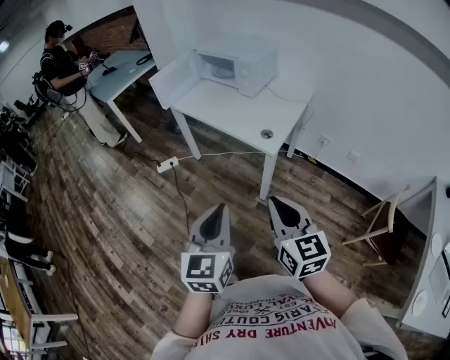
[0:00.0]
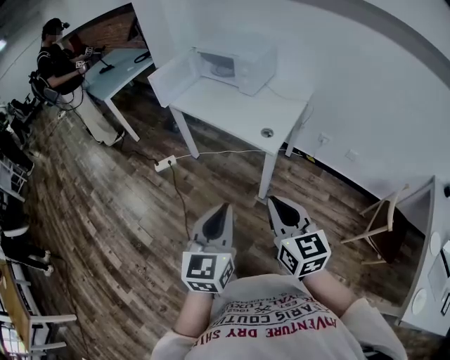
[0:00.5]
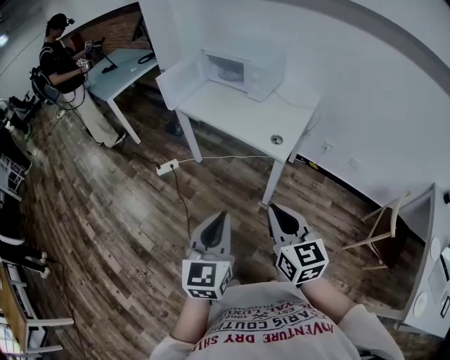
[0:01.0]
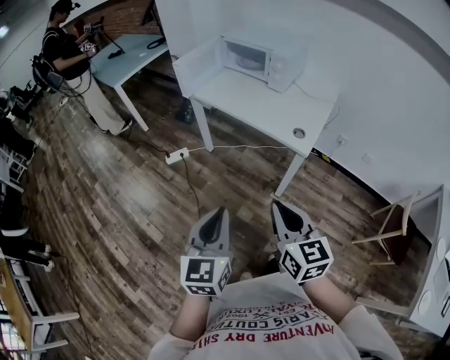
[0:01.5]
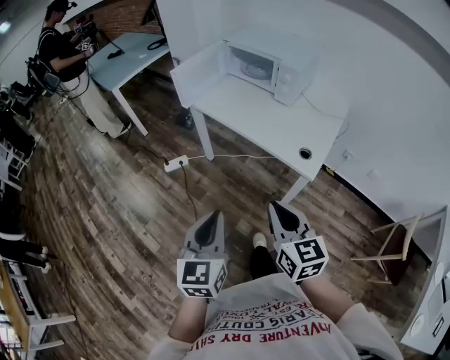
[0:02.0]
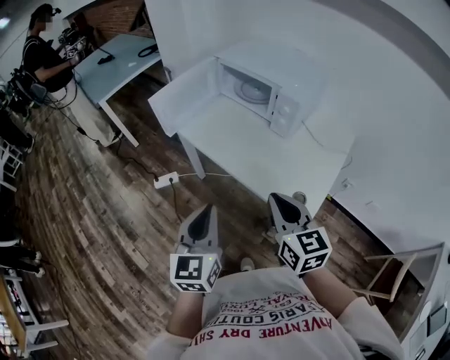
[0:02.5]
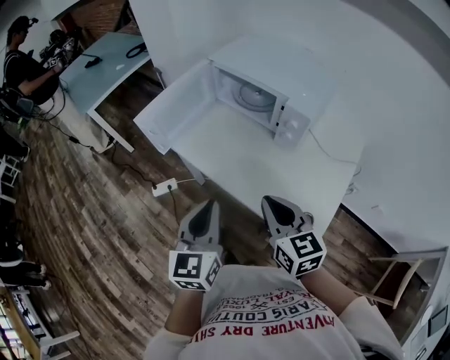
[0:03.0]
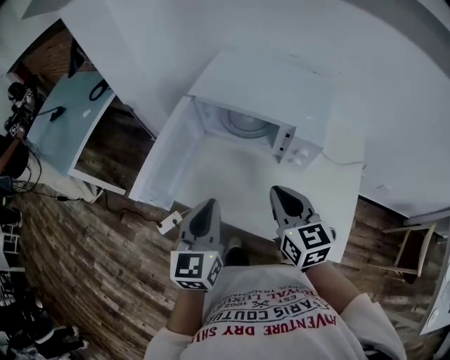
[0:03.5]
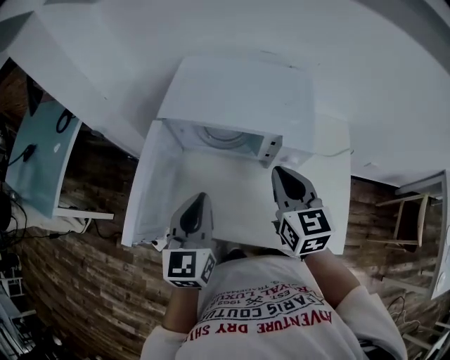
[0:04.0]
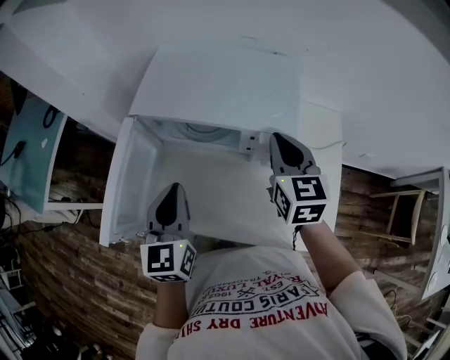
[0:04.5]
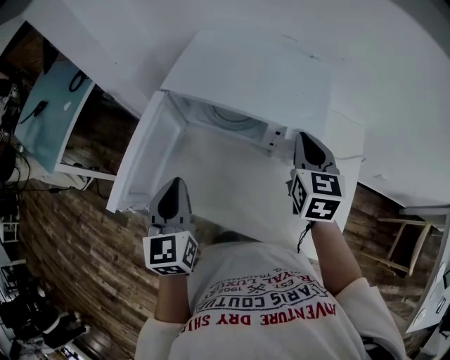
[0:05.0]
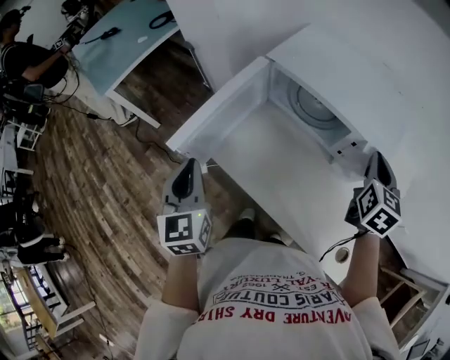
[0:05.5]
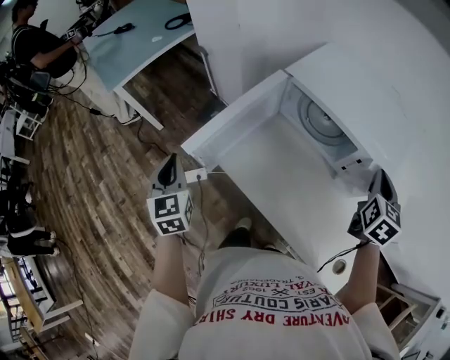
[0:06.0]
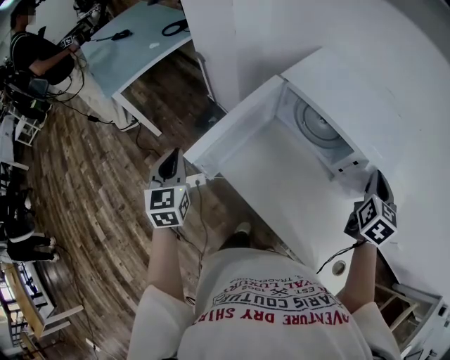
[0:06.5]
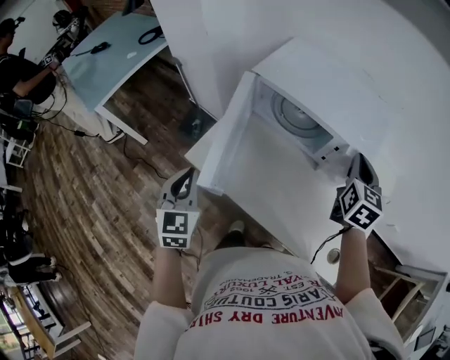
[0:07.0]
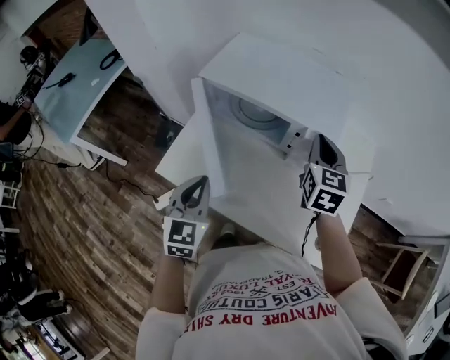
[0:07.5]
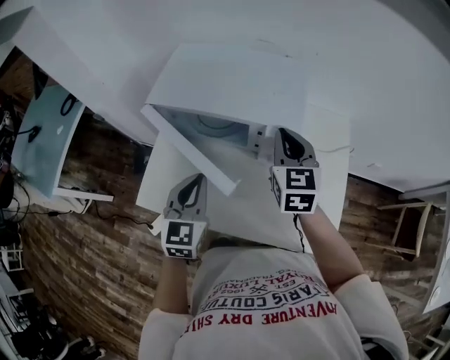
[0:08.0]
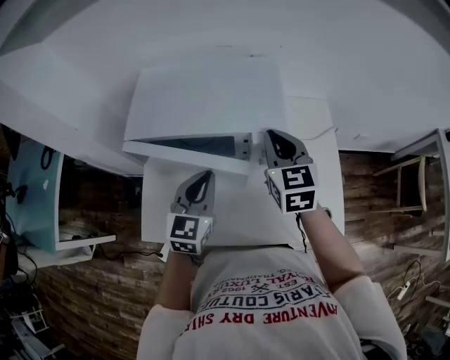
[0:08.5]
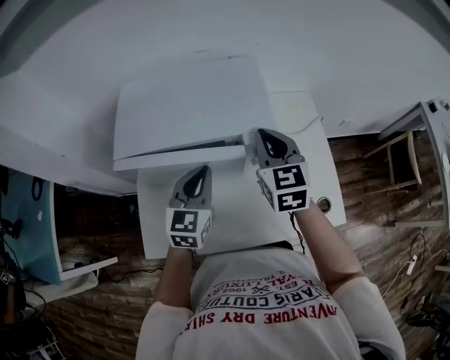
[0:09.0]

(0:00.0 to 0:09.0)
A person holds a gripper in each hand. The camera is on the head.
0:00.0 - 0:02.0: Both grippers move forward and to the left, some 20 cm.
0:02.0 - 0:04.5: The pair of grippers is taken about 60 cm. The right gripper turns by some 30 degrees.
0:04.5 - 0:07.0: The left gripper heads to the left and backward, covering roughly 20 cm, and rotates some 20 degrees.
0:07.0 - 0:09.0: The left gripper ends up some 35 cm from where it was, and changes its angle by roughly 50 degrees.

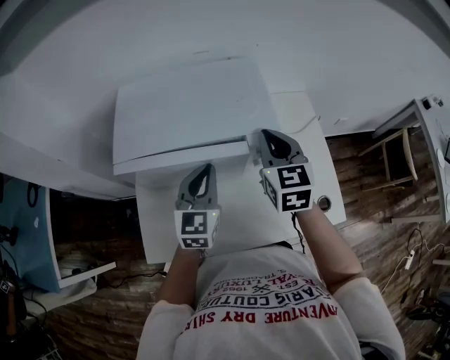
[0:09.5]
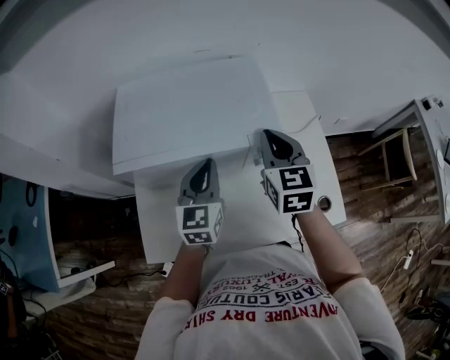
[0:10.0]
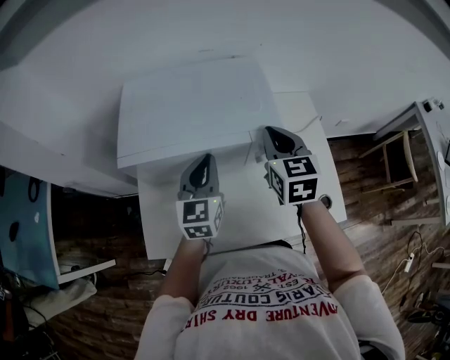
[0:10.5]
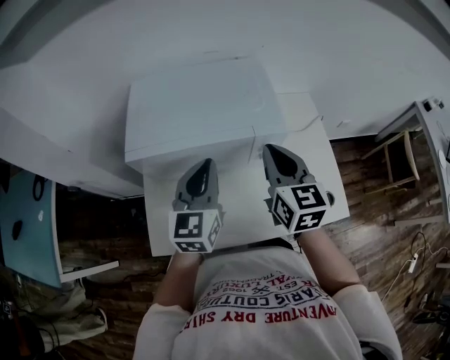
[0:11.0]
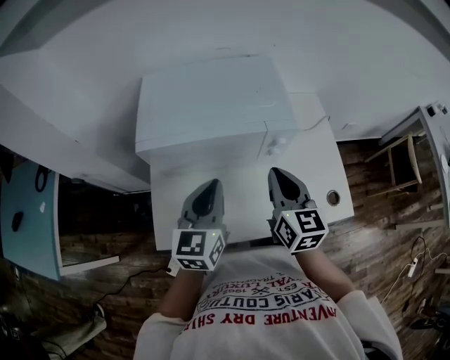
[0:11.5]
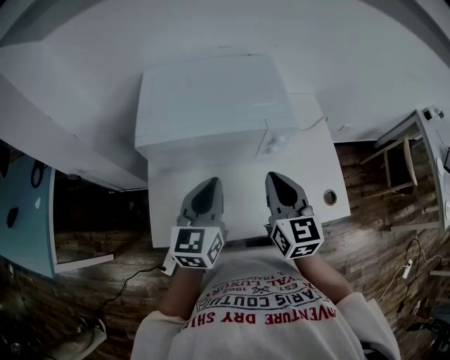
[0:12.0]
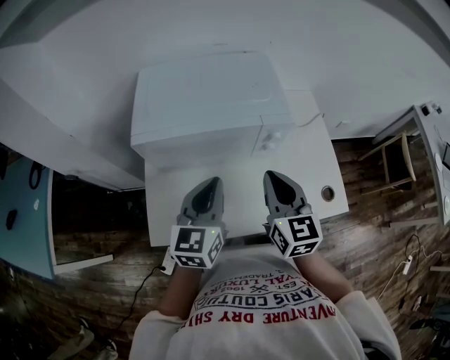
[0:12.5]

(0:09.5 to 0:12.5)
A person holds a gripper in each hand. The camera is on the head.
0:09.5 - 0:11.0: The right gripper is displaced backward by approximately 5 cm; the left gripper travels upward by approximately 5 cm.
0:11.0 - 0:12.5: Both grippers move backward, roughly 10 cm.

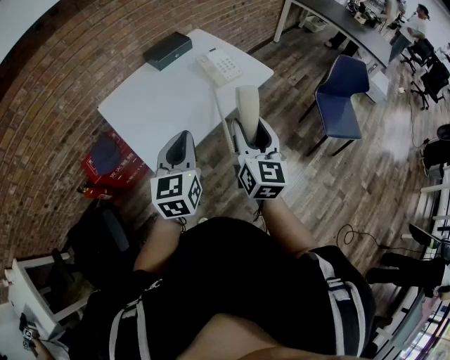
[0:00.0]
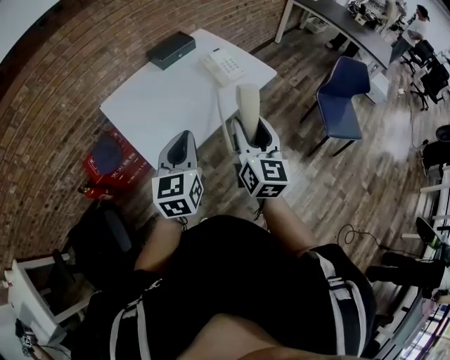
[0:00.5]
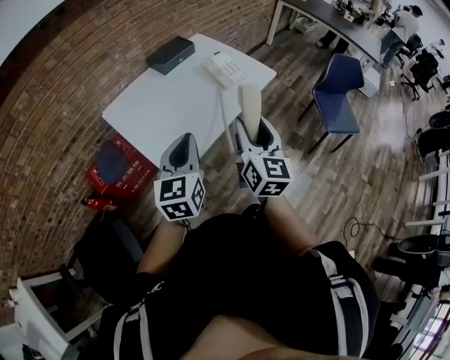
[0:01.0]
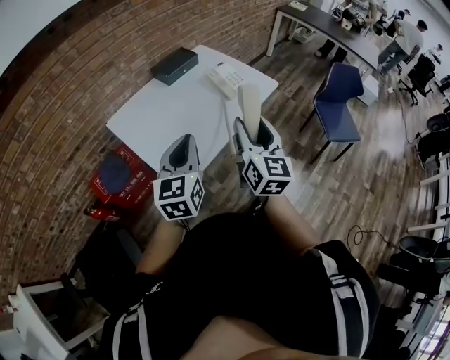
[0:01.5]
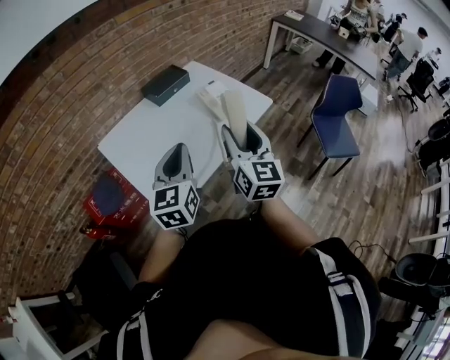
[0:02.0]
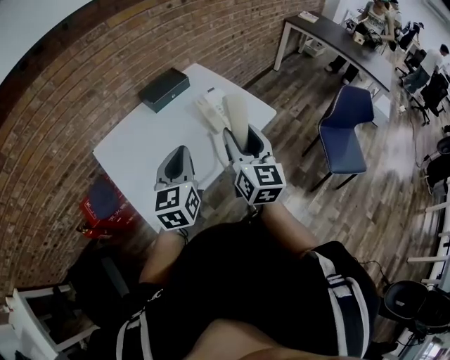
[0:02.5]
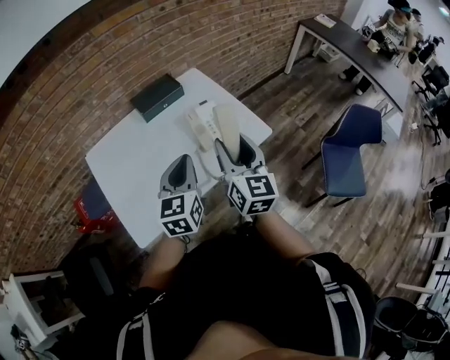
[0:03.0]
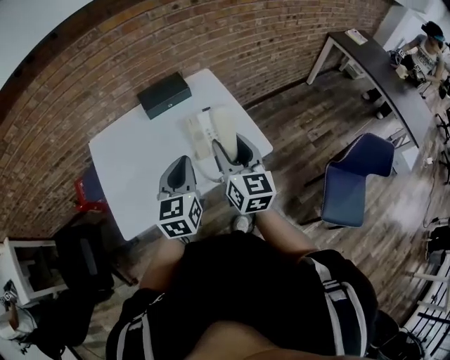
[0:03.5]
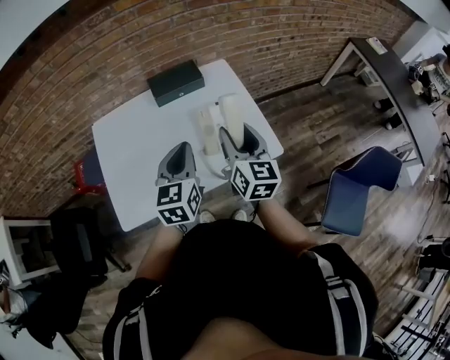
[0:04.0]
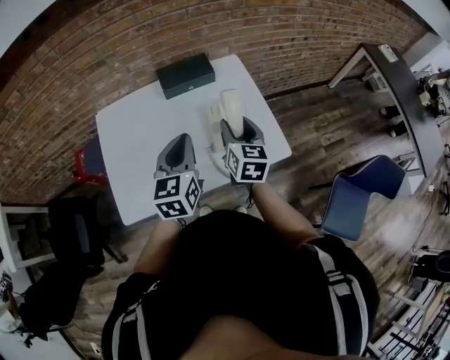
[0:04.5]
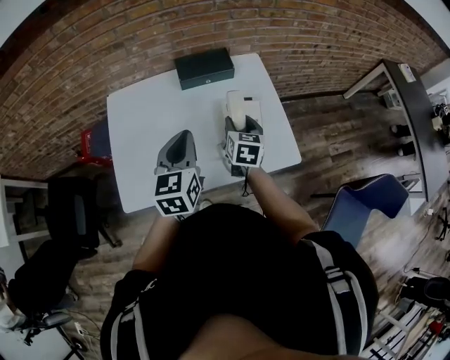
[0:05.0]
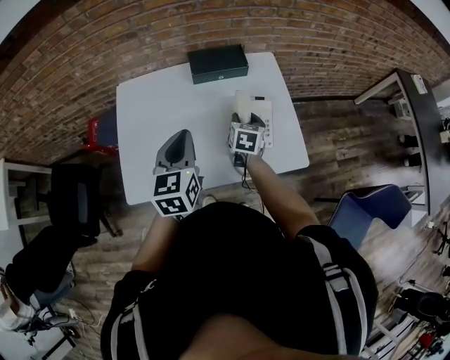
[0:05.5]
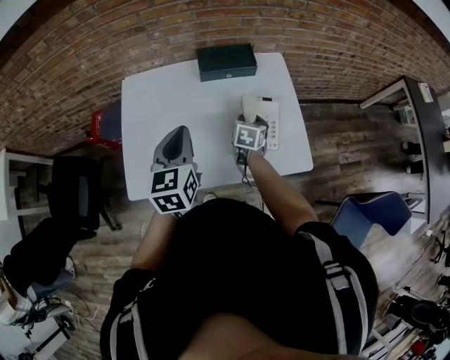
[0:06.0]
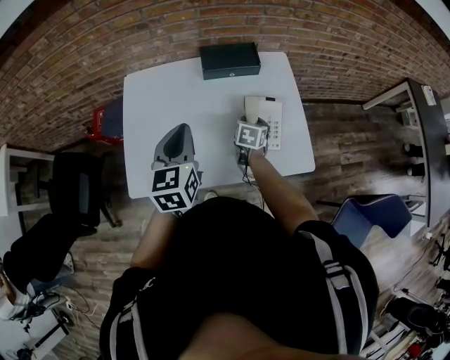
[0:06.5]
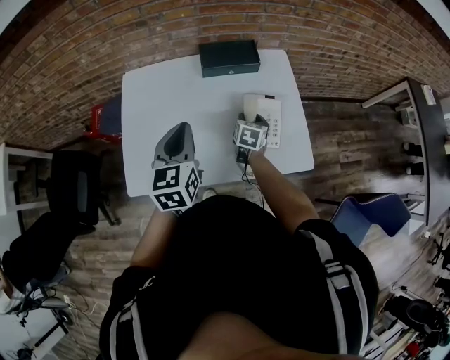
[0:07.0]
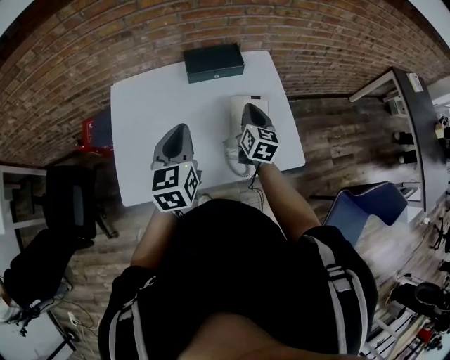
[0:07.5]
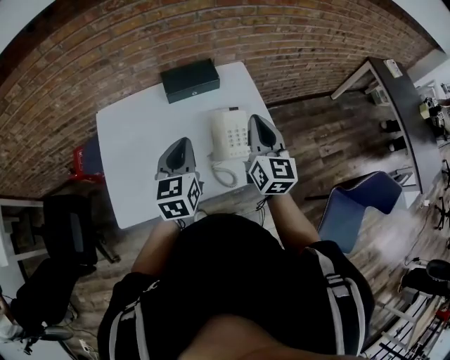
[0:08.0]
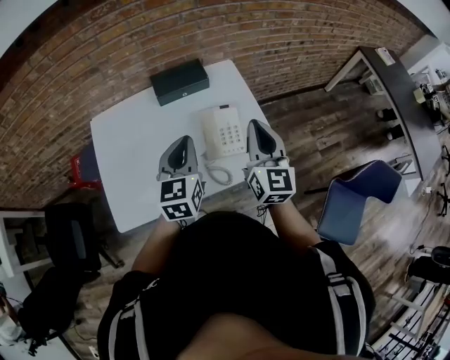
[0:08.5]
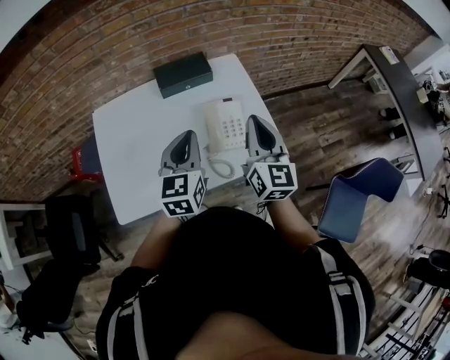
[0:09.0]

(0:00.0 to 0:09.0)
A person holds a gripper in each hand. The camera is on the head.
0:00.0 - 0:02.0: The grippers both shift forward and to the left by roughly 10 cm.
0:02.0 - 0:04.5: The right gripper moves roughly 35 cm, and rotates approximately 30 degrees; the left gripper ends up approximately 30 cm from where it was, and turns by approximately 30 degrees.
0:04.5 - 0:07.0: The right gripper goes about 20 cm downward and forward, and changes its angle by approximately 20 degrees. The left gripper heads to the left, covering some 10 cm.
0:07.0 - 0:09.0: The right gripper heads upward and backward, covering approximately 30 cm, points its fingers some 40 degrees further upward, and closes up; the left gripper shifts roughly 10 cm to the right.

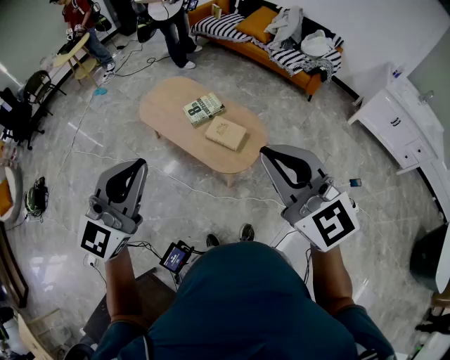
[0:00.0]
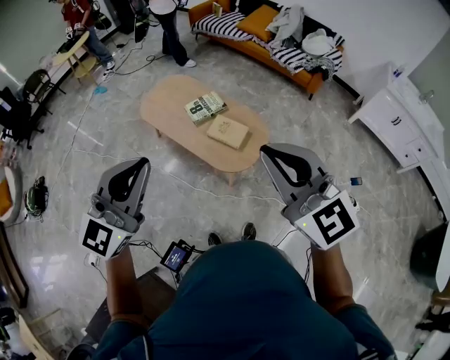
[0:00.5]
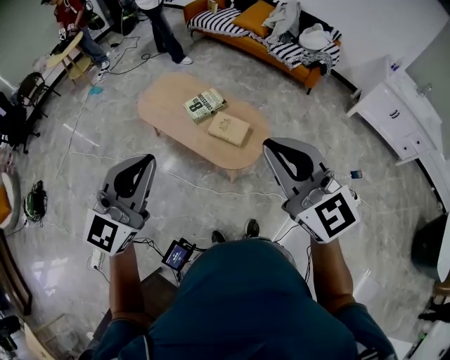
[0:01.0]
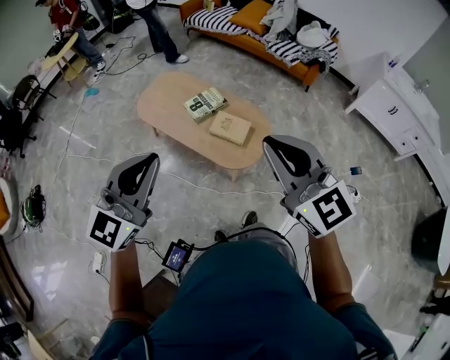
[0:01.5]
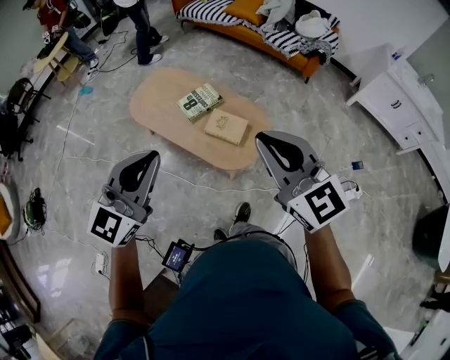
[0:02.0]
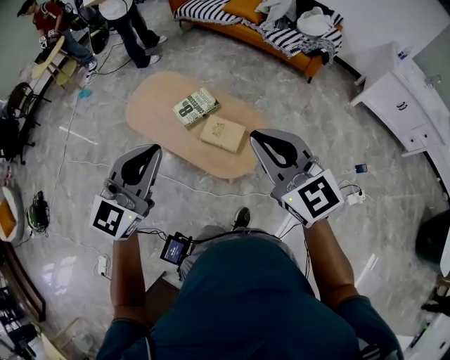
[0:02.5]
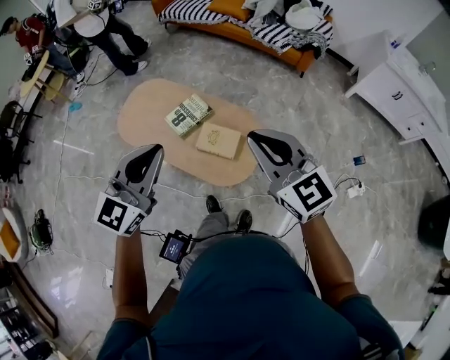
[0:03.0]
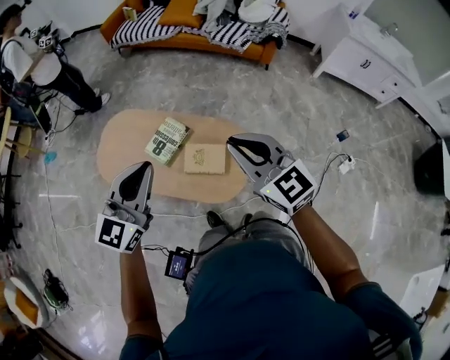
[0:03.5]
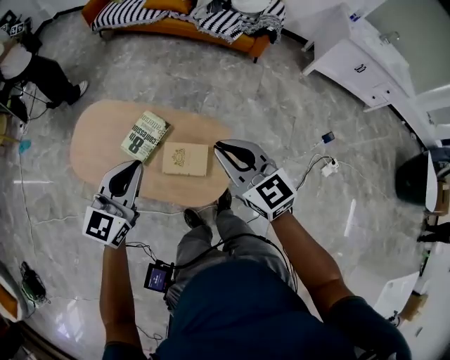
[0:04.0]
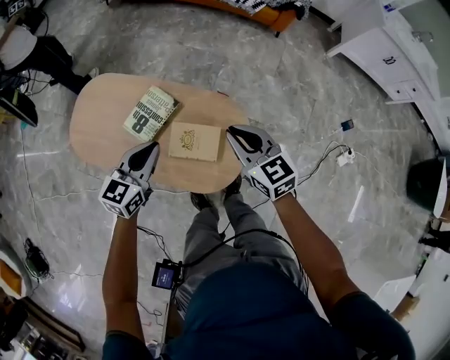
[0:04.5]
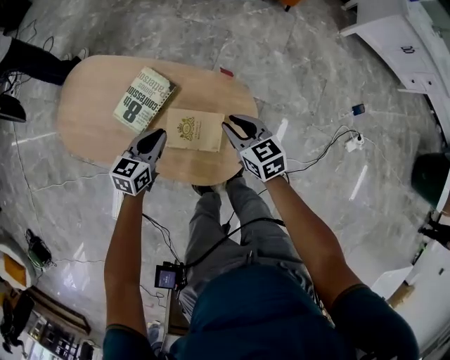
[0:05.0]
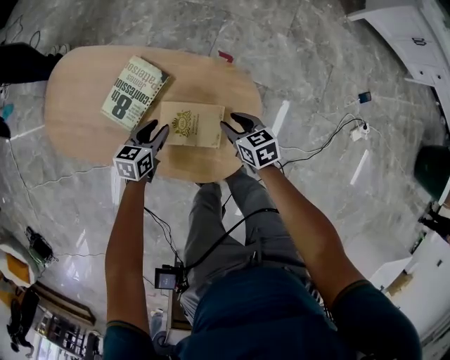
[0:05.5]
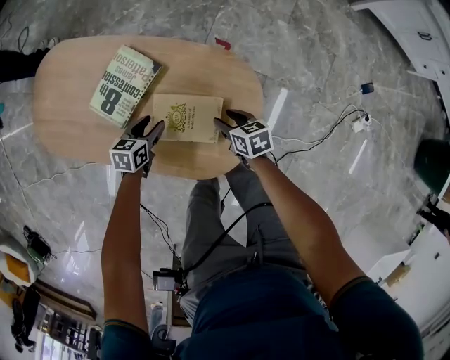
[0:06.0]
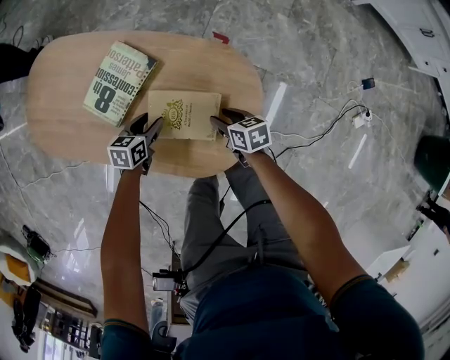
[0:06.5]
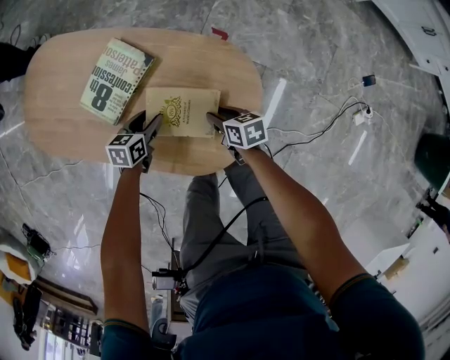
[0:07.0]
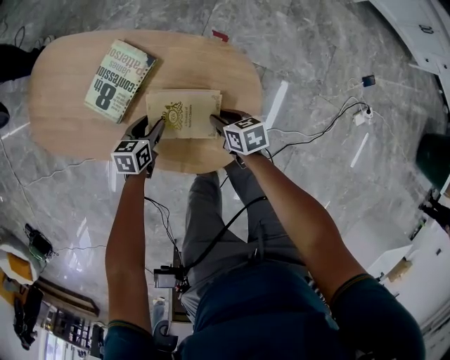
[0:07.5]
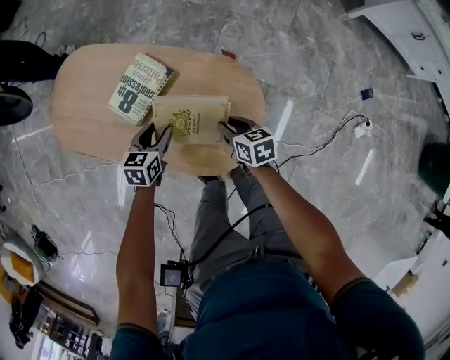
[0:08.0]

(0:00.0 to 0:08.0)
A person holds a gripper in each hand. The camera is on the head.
0:00.0 - 0:02.0: Both grippers move forward and downward, roughly 15 cm.
0:02.0 - 0:04.0: The grippers both shift forward and downward by roughly 35 cm. The right gripper rotates roughly 20 degrees. The left gripper changes its angle by some 20 degrees.
0:04.0 - 0:06.0: The two grippers go approximately 50 cm downward. The right gripper angles its fingers downward, by roughly 30 degrees, and opens up. Meanwhile the left gripper points its fingers roughly 40 degrees further downward, and opens its fingers.
0:06.0 - 0:08.0: Both grippers move upward, roughly 10 cm.
